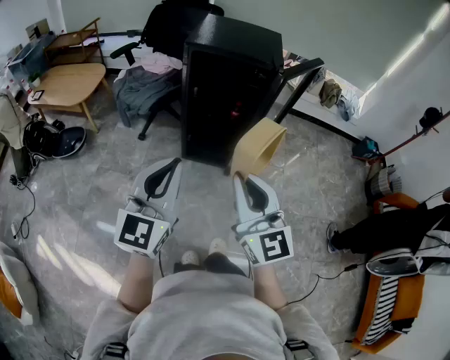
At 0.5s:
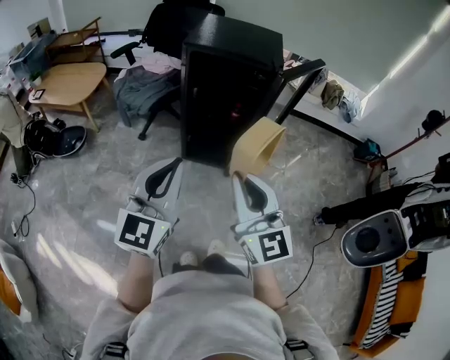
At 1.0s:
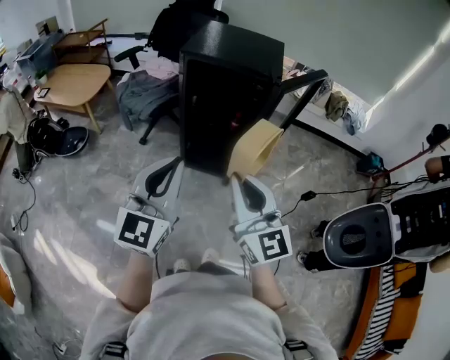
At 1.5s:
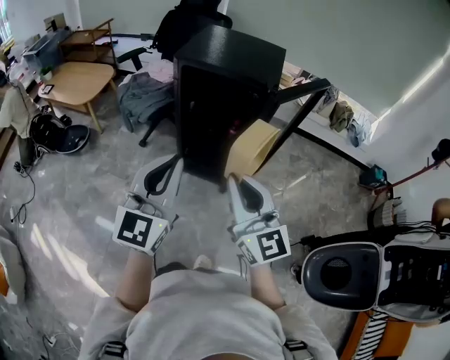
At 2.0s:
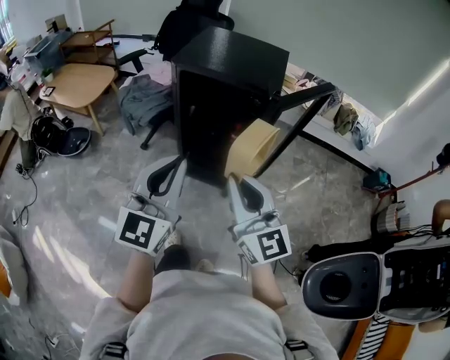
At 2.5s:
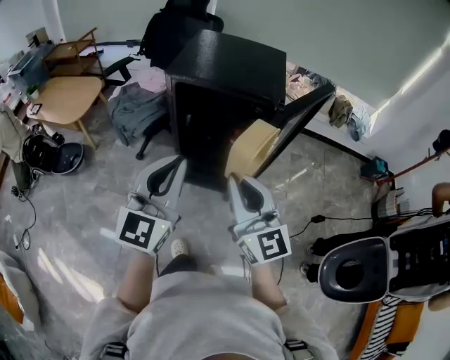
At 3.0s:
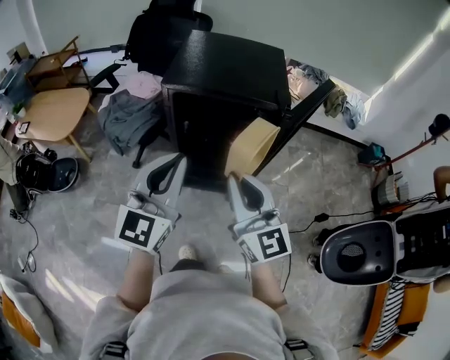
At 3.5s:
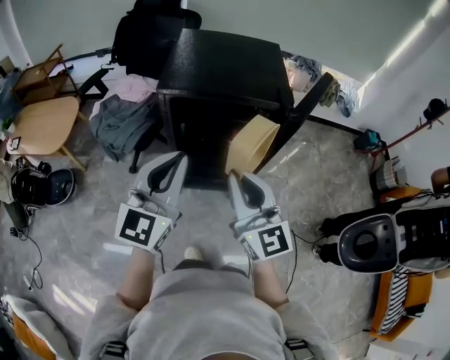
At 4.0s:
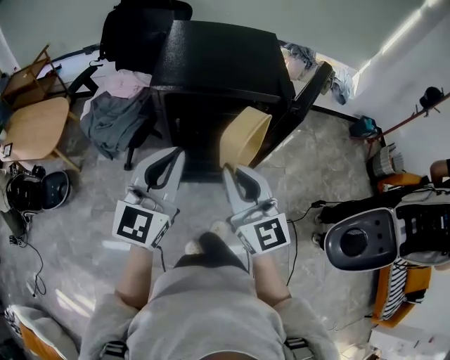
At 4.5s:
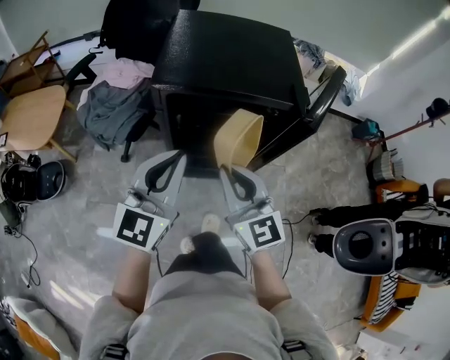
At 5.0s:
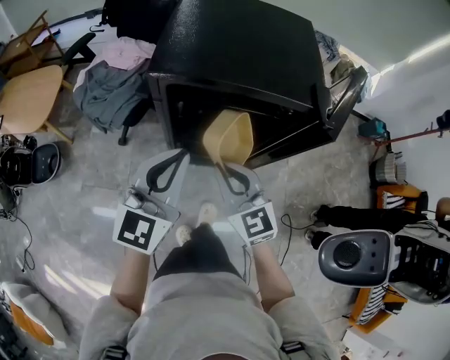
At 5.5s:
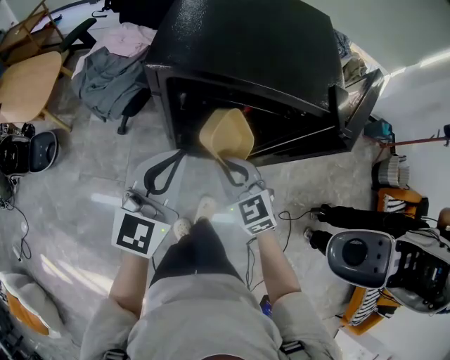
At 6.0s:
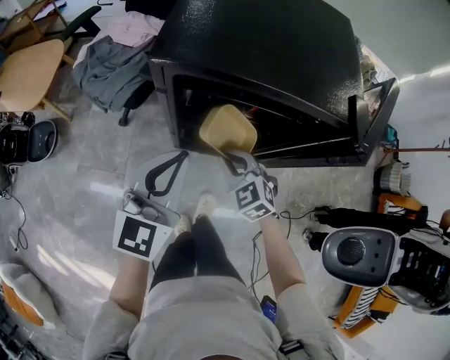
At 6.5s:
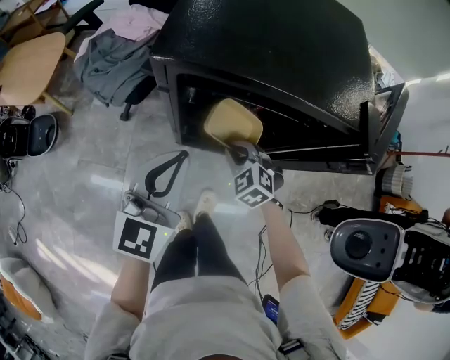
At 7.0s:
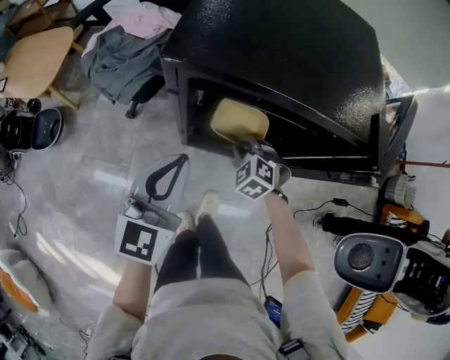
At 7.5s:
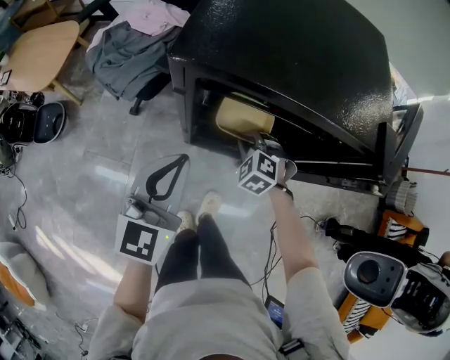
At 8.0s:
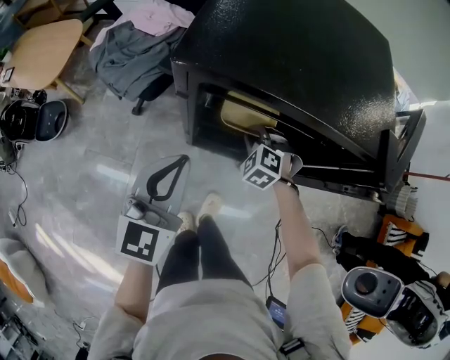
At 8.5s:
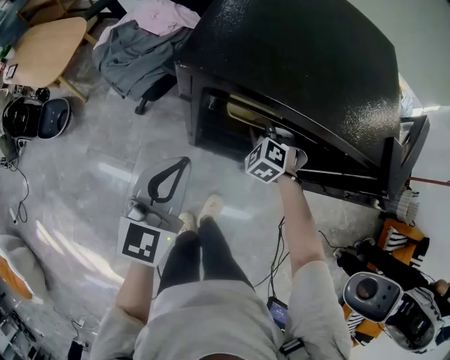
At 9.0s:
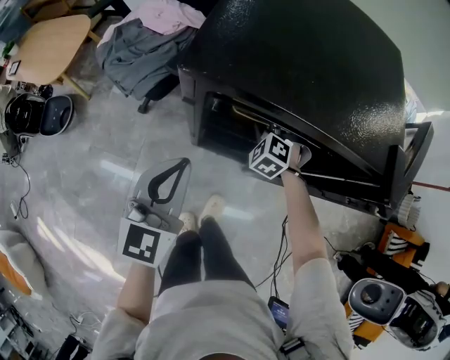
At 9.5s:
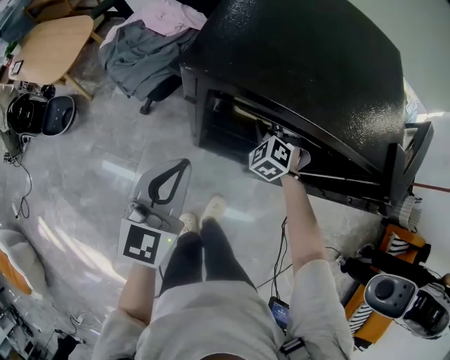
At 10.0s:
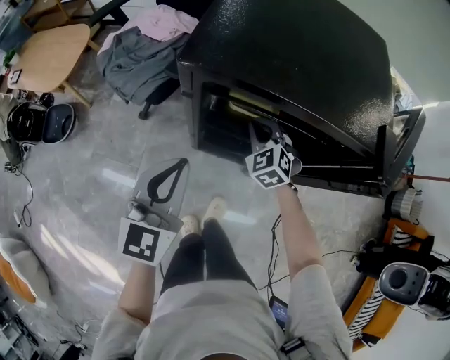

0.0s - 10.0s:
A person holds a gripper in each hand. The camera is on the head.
0.0s - 2.0s: The grippers both shift forward and to the right by about 20 cm.
2.0s - 4.0s: Both grippers move forward and to the left, about 25 cm.
4.0s - 6.0s: The right gripper heads downward and forward, covering approximately 35 cm, and angles its fingers downward, by some 40 degrees; the left gripper is displaced downward and forward by about 20 cm.
6.0s - 8.0s: The left gripper moves roughly 5 cm. Meanwhile the right gripper goes about 15 cm forward and downward, and swivels approximately 30 degrees.
8.0s - 10.0s: The right gripper travels upward by roughly 5 cm, and turns by approximately 30 degrees.

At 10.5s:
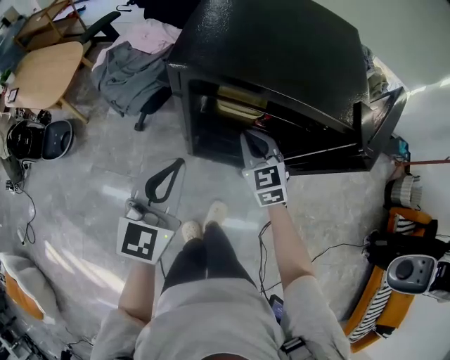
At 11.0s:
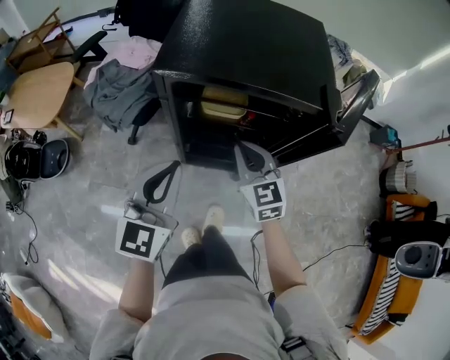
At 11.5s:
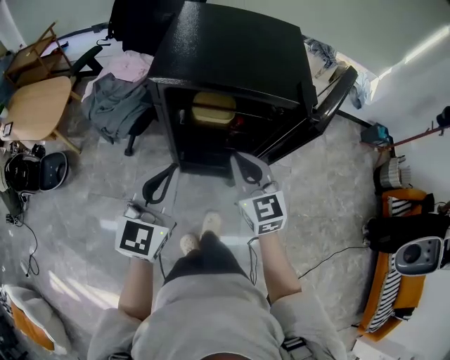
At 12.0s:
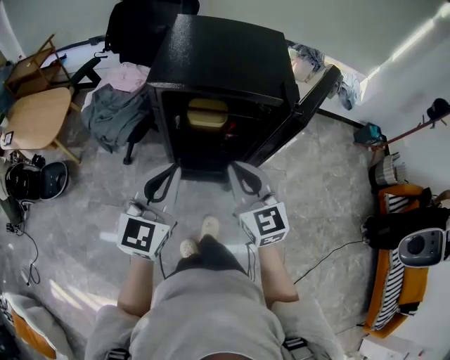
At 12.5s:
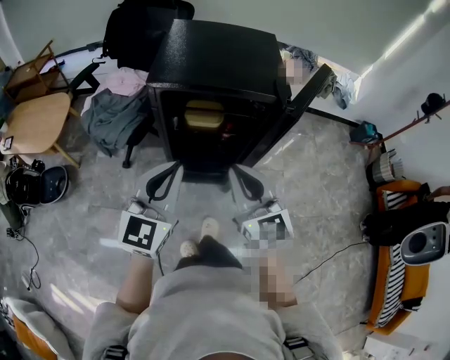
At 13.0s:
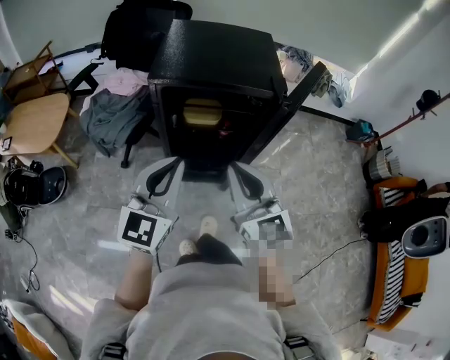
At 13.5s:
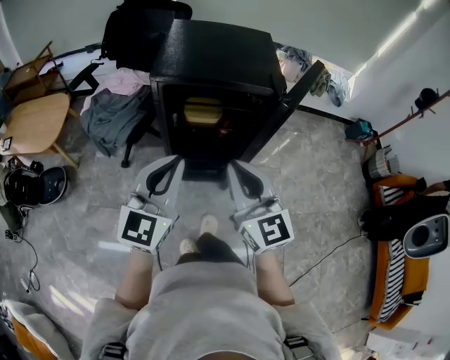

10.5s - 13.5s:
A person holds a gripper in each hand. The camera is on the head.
10.5s - 12.0s: The left gripper heads upward and backward, covering some 10 cm; the right gripper is displaced upward and backward by roughly 25 cm, and changes its angle by some 20 degrees.
12.0s - 13.5s: The left gripper shifts approximately 5 cm backward. Meanwhile the right gripper is displaced backward and upward by some 10 cm.

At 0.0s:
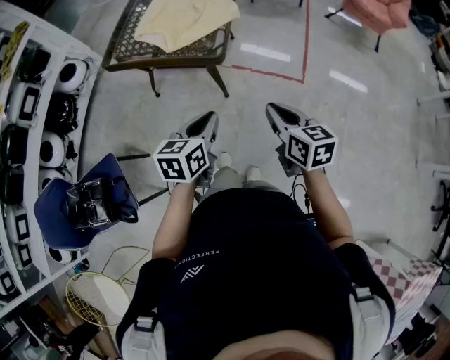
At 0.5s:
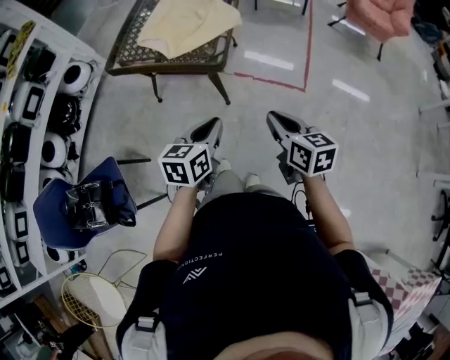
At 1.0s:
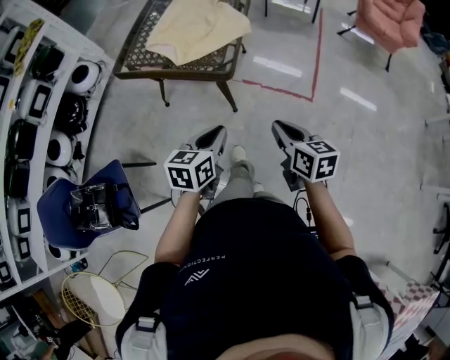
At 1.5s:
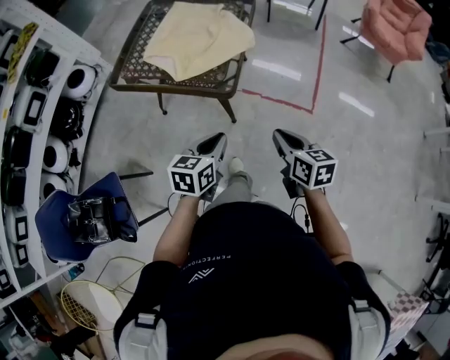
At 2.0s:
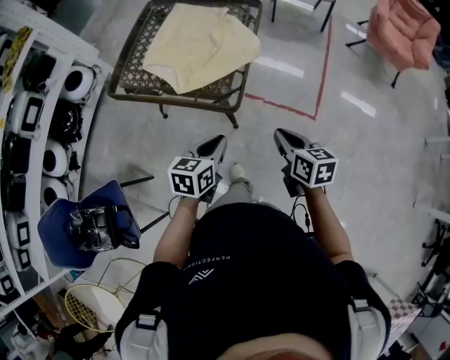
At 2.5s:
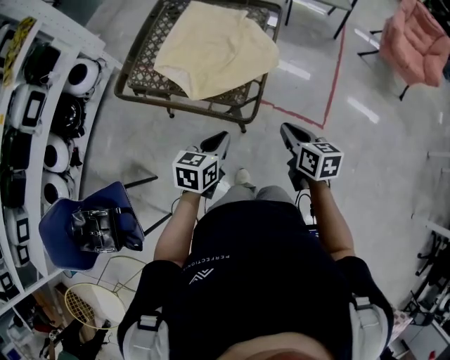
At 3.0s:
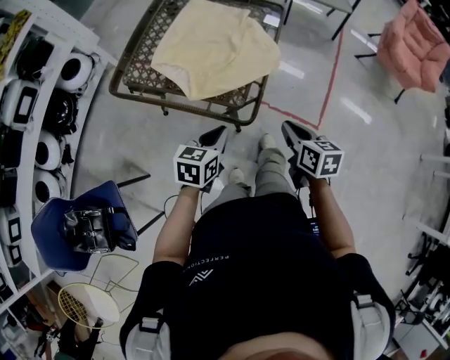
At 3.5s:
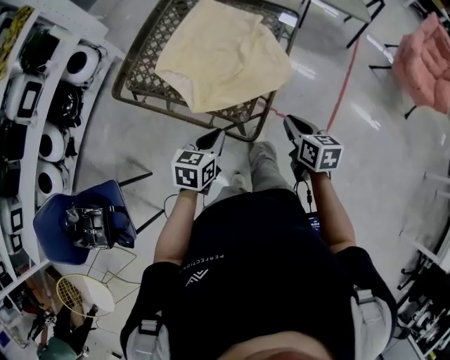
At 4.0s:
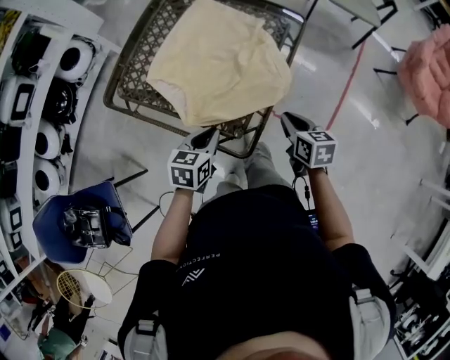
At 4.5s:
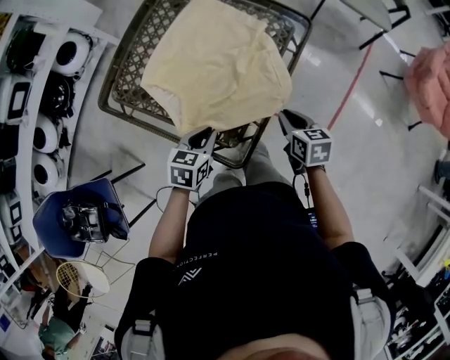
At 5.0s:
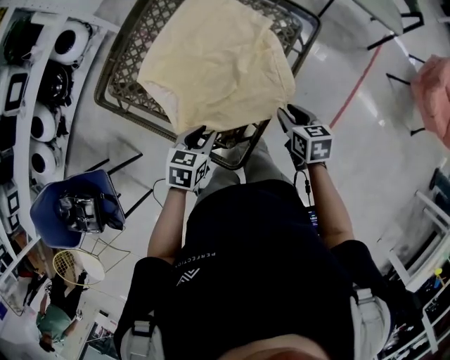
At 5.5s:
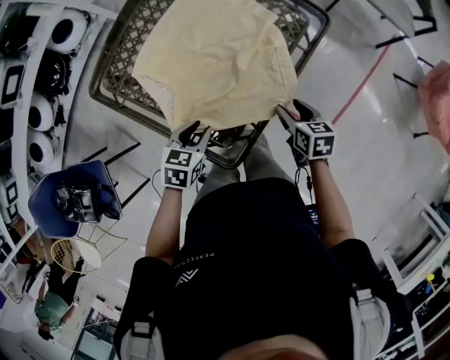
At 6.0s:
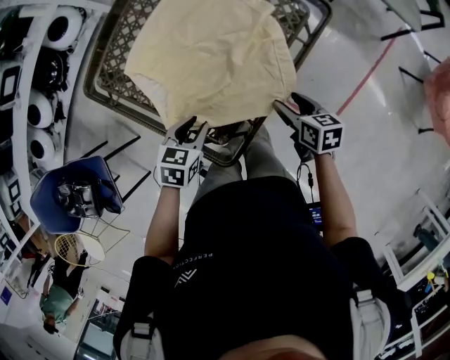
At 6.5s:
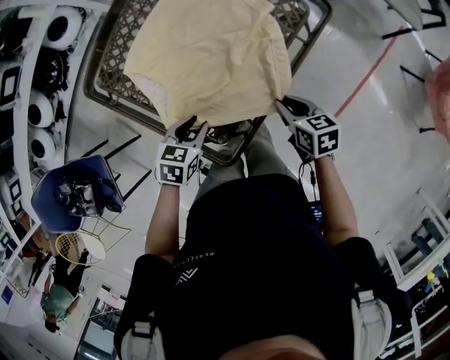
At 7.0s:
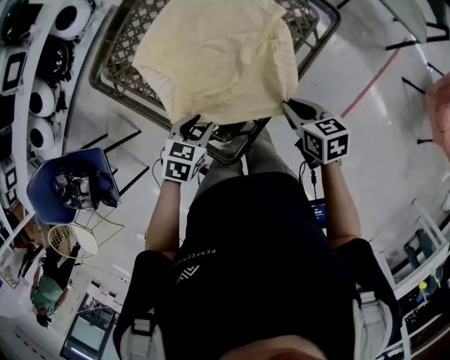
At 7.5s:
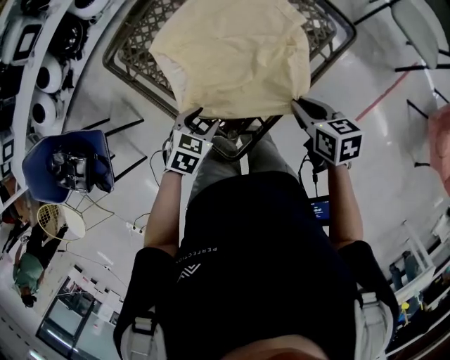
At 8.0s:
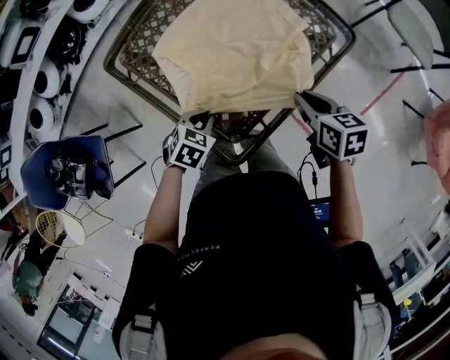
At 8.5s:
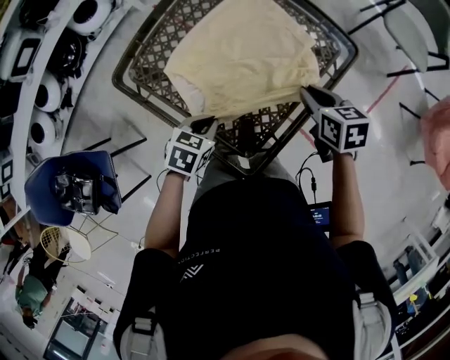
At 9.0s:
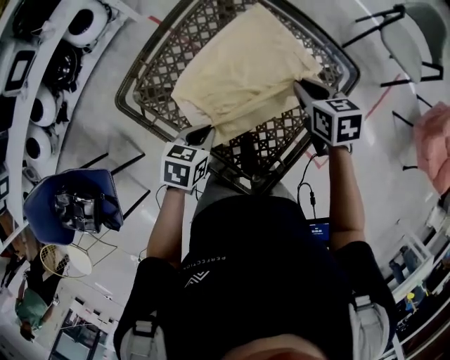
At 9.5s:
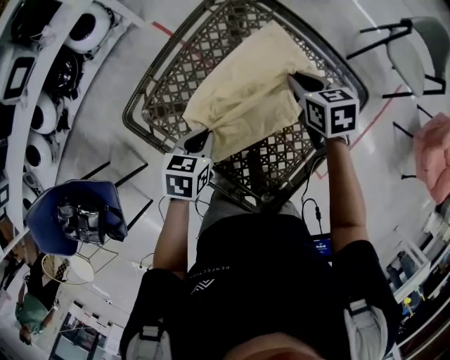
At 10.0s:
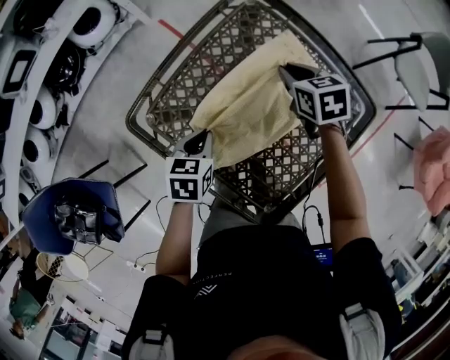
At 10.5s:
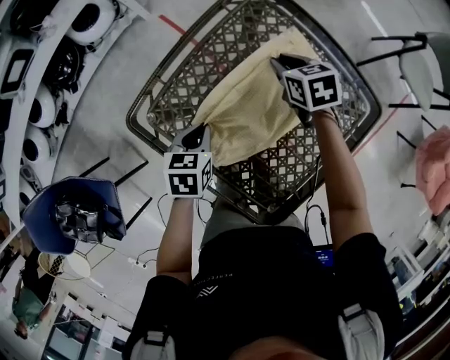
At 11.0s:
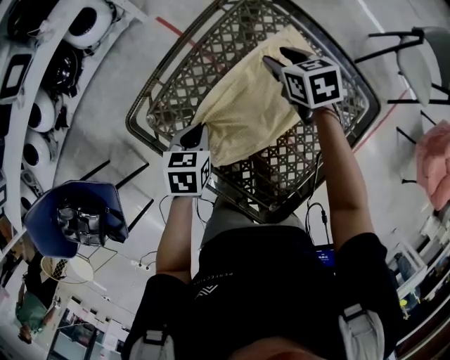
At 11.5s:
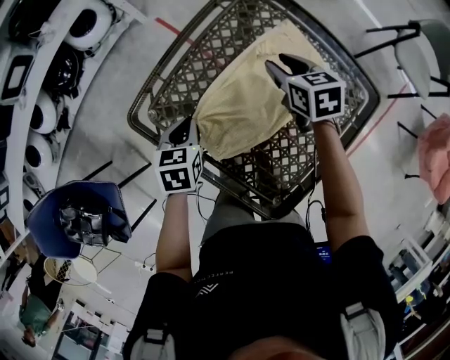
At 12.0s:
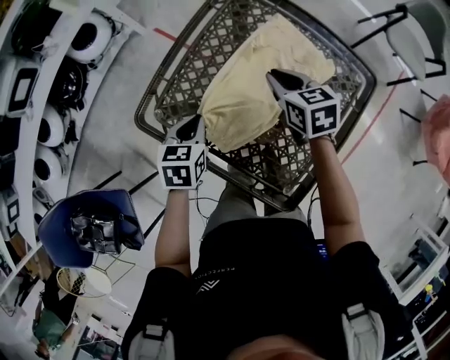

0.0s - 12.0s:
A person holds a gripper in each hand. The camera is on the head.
0.0s - 2.0s: The grippers both shift forward by about 15 cm.
2.0s - 4.0s: Both grippers travel together forward, approximately 25 cm.
4.0s - 6.0s: The right gripper goes some 10 cm forward and downward, and opens its fingers. The left gripper goes about 5 cm downward.
6.0s - 8.0s: The right gripper moves upward and forward, roughly 10 cm, and closes up.
8.0s - 10.0s: The grippers both shift forward and to the left by some 30 cm. The left gripper turns by about 30 degrees.
10.0s - 12.0s: The right gripper moves backward, roughly 10 cm, and opens, then closes again.

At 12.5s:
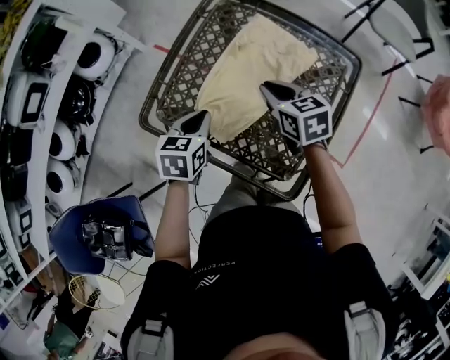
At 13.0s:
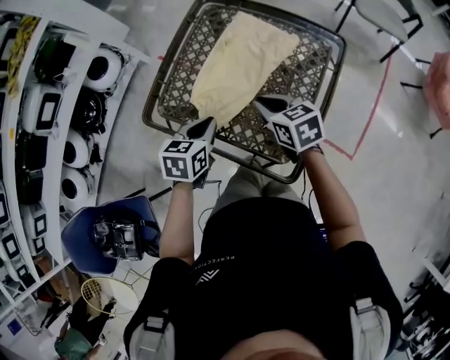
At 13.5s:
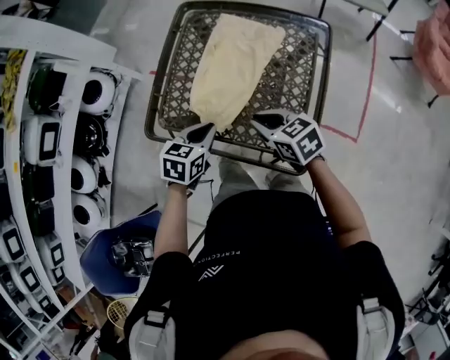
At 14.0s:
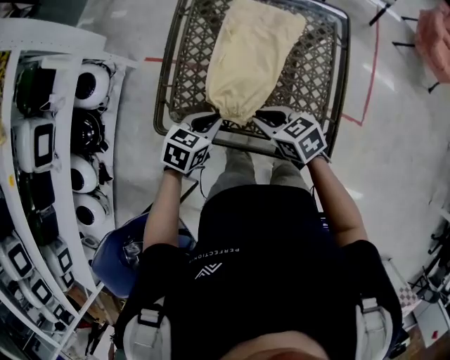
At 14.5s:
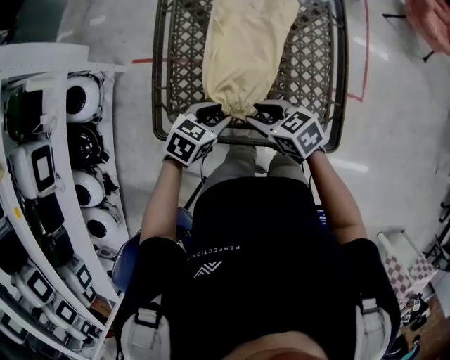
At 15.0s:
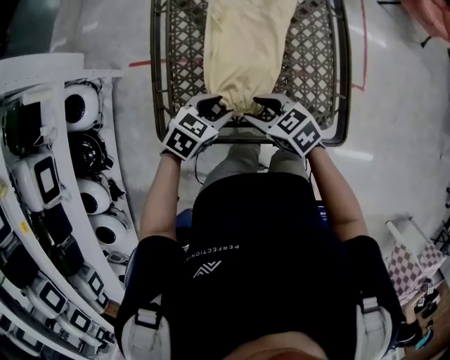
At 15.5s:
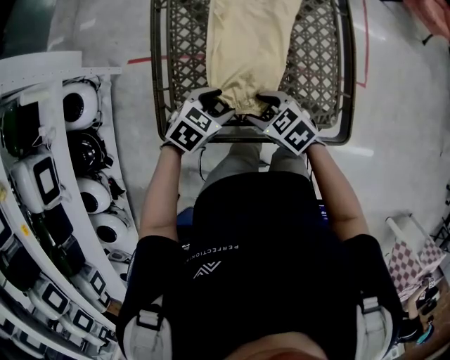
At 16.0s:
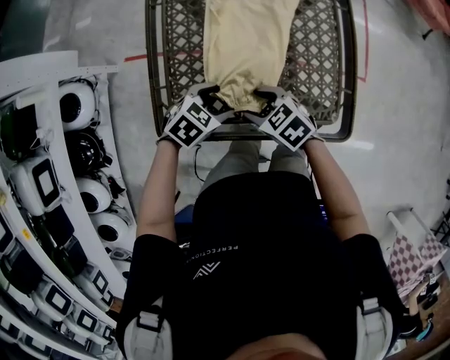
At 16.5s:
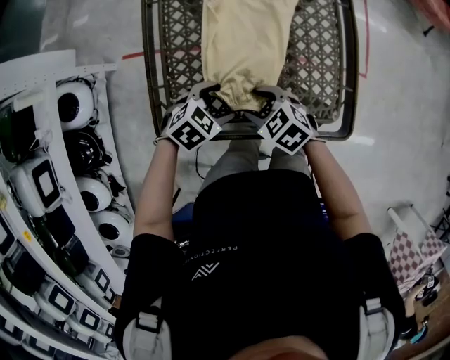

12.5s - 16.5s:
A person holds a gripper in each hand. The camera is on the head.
12.5s - 14.5s: The left gripper is displaced downward by about 5 cm, changes its angle by some 50 degrees, and opens its fingers. Meanwhile the right gripper shifts by some 20 cm.
14.5s - 16.5s: The left gripper changes its angle by some 30 degrees, and opens. Meanwhile the right gripper goes approximately 5 cm downward, and opens up.
